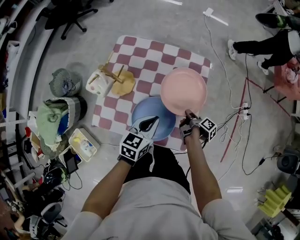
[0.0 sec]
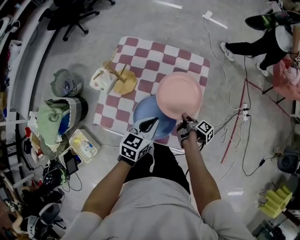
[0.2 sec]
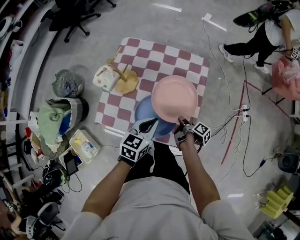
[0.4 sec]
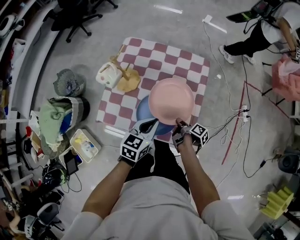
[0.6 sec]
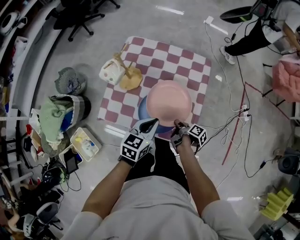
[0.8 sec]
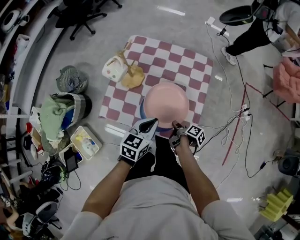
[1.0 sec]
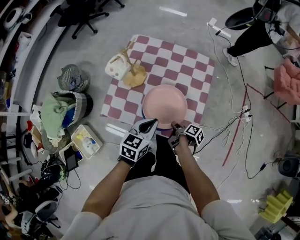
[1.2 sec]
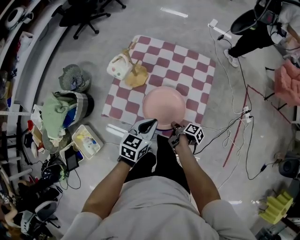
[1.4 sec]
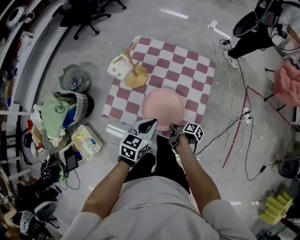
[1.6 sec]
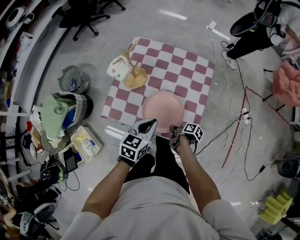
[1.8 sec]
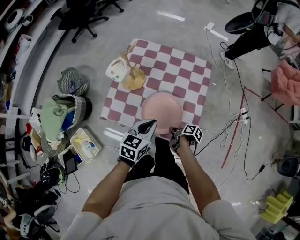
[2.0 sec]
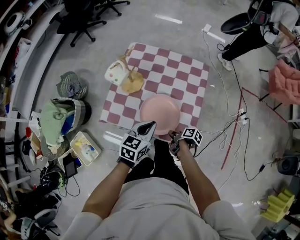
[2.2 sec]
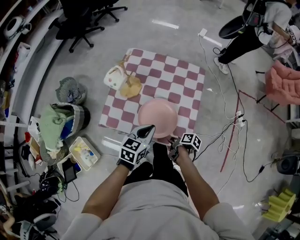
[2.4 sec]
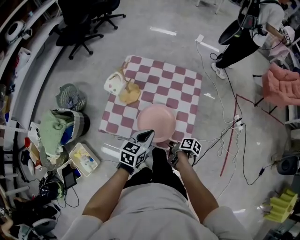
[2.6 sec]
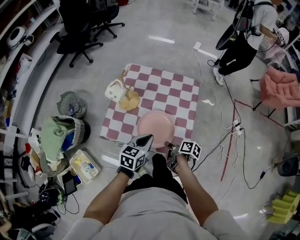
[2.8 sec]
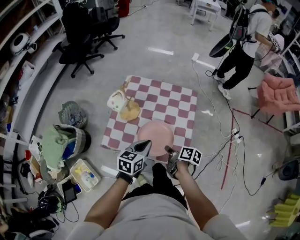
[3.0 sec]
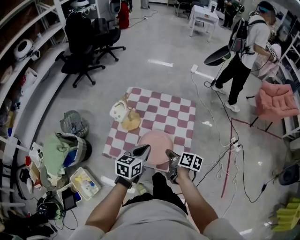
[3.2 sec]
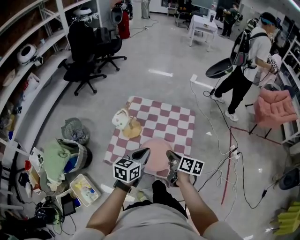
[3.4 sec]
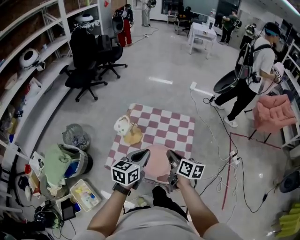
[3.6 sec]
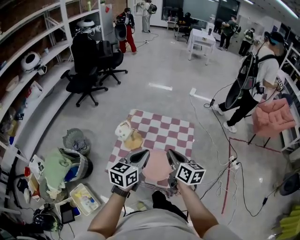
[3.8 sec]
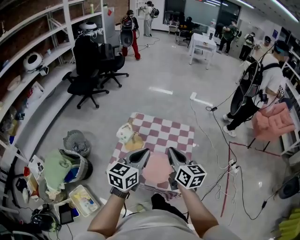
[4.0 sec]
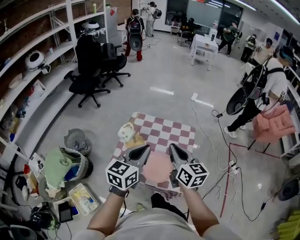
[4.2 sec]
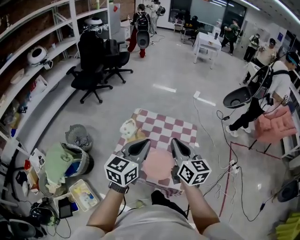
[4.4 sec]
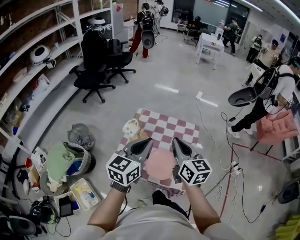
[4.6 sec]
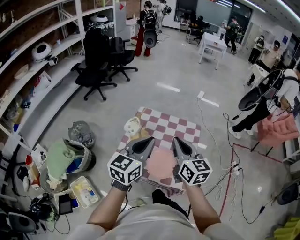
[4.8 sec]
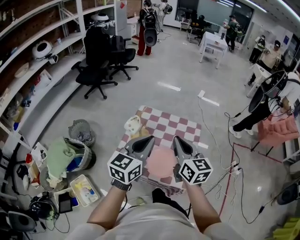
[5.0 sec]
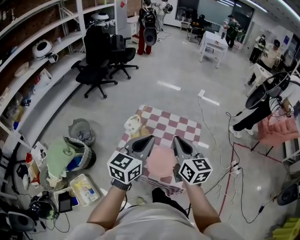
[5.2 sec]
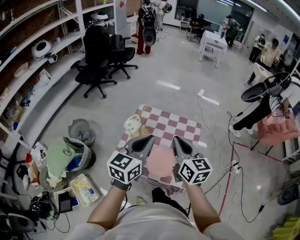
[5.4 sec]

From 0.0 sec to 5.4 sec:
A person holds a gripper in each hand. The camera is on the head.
From 0.0 sec to 1.4 sec: The left gripper shifts by approximately 10 cm.
From 2.8 sec to 4.0 sec: The left gripper is displaced upward by approximately 25 cm, and swivels some 20 degrees.
From 4.0 sec to 5.4 sec: The left gripper moves upward, roughly 5 cm.

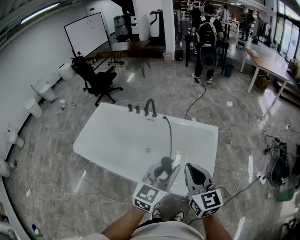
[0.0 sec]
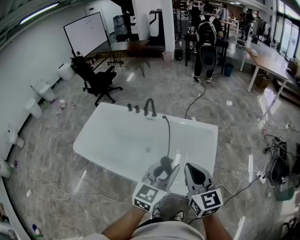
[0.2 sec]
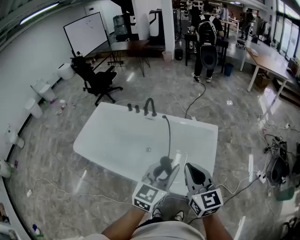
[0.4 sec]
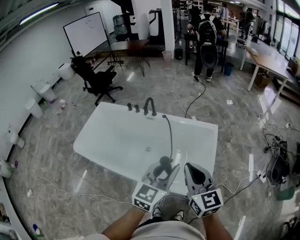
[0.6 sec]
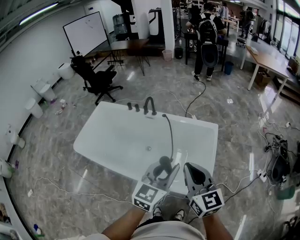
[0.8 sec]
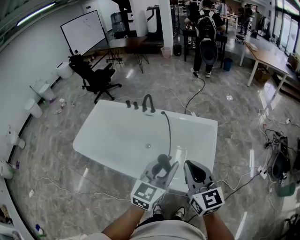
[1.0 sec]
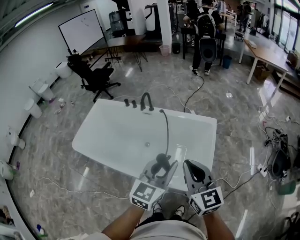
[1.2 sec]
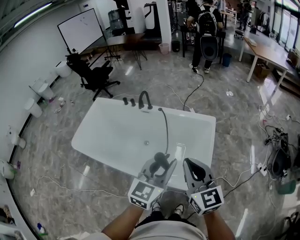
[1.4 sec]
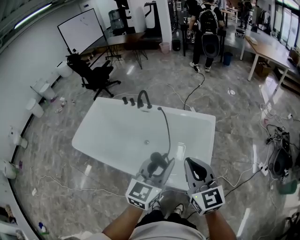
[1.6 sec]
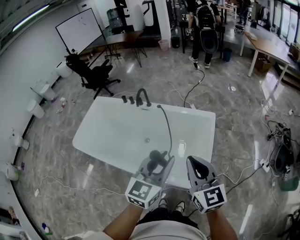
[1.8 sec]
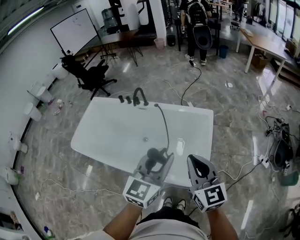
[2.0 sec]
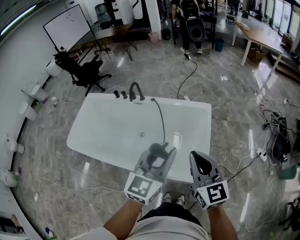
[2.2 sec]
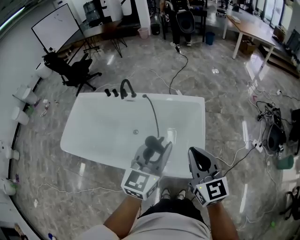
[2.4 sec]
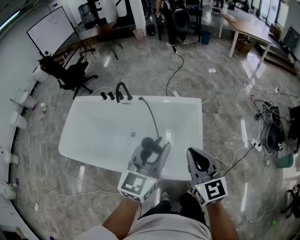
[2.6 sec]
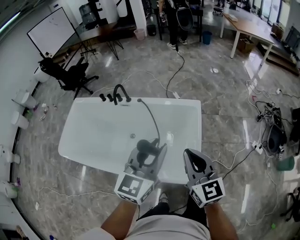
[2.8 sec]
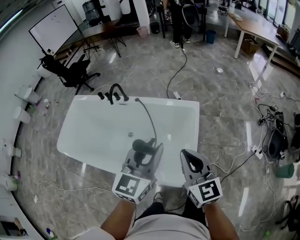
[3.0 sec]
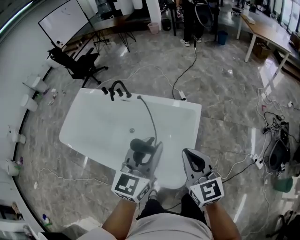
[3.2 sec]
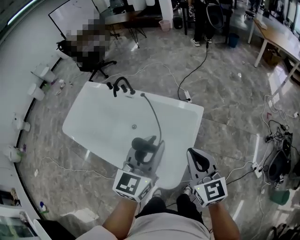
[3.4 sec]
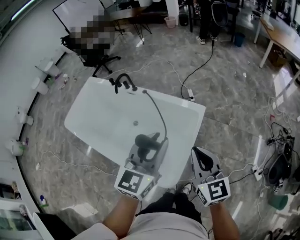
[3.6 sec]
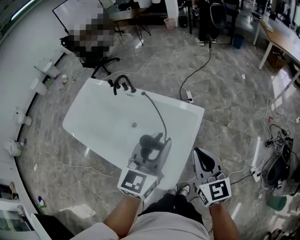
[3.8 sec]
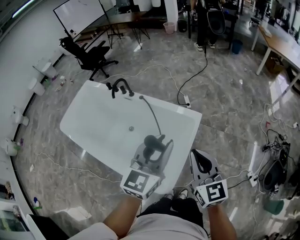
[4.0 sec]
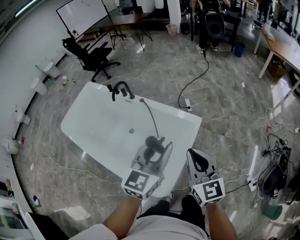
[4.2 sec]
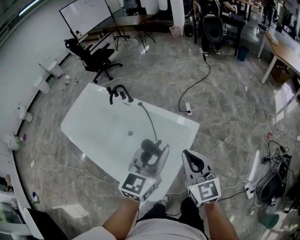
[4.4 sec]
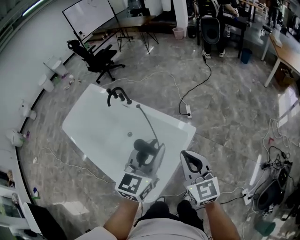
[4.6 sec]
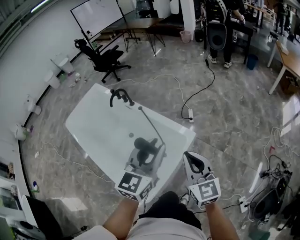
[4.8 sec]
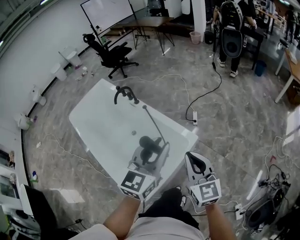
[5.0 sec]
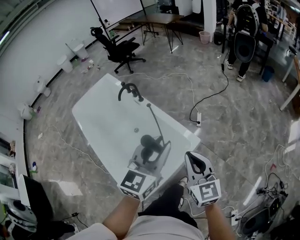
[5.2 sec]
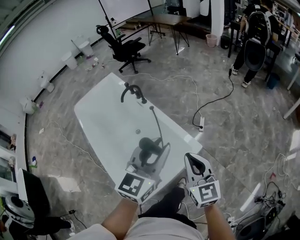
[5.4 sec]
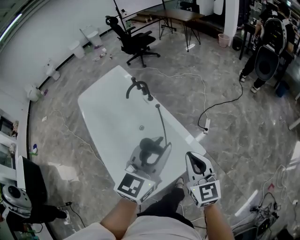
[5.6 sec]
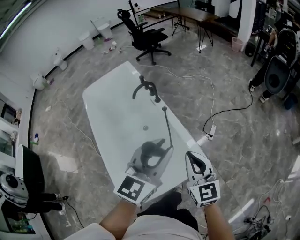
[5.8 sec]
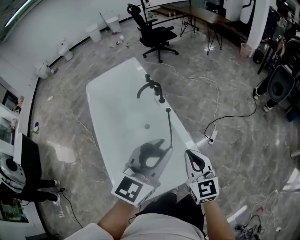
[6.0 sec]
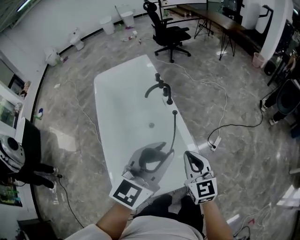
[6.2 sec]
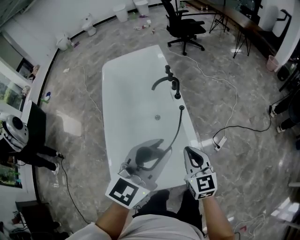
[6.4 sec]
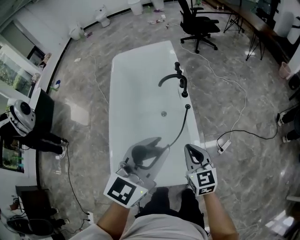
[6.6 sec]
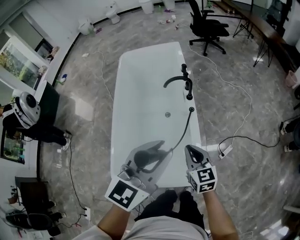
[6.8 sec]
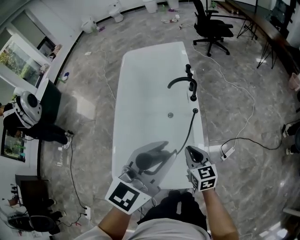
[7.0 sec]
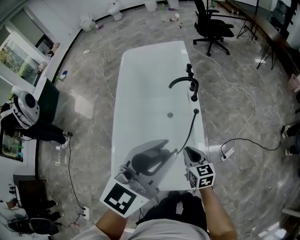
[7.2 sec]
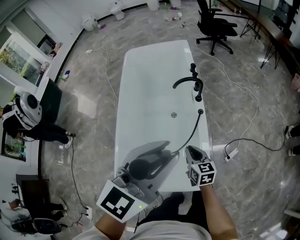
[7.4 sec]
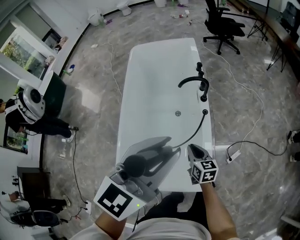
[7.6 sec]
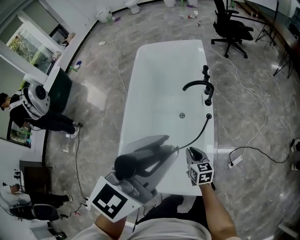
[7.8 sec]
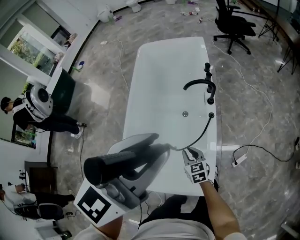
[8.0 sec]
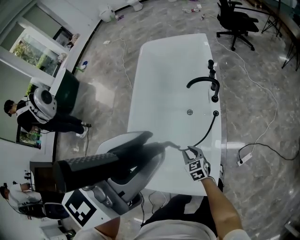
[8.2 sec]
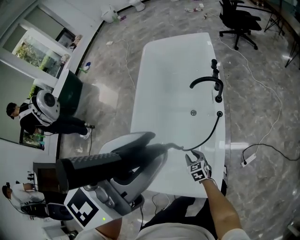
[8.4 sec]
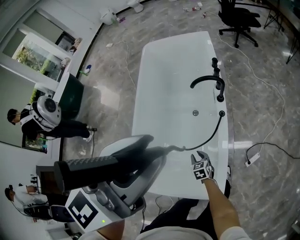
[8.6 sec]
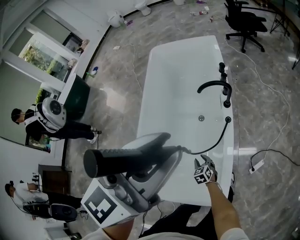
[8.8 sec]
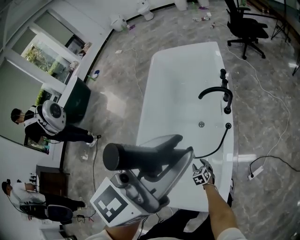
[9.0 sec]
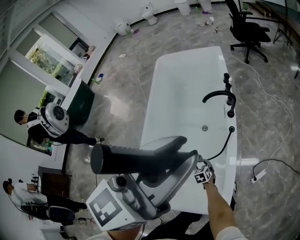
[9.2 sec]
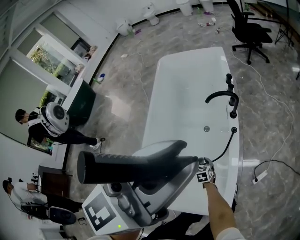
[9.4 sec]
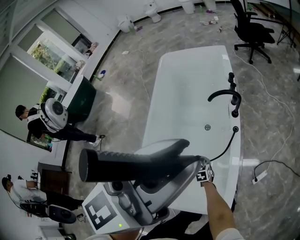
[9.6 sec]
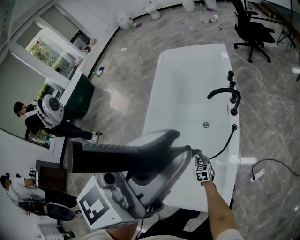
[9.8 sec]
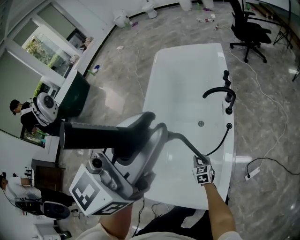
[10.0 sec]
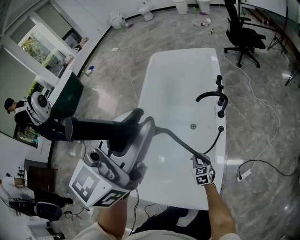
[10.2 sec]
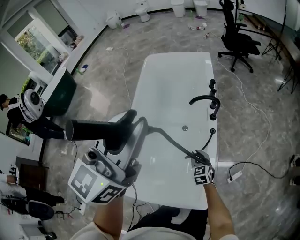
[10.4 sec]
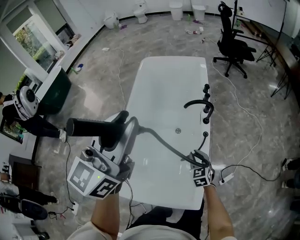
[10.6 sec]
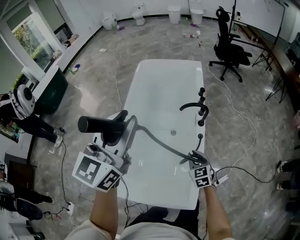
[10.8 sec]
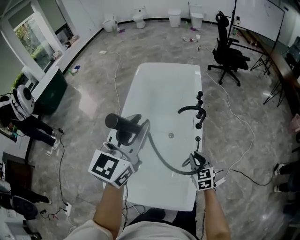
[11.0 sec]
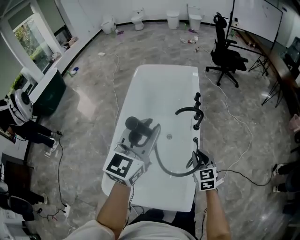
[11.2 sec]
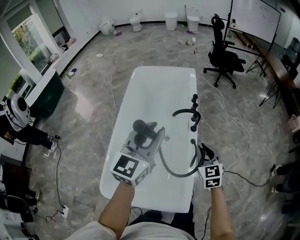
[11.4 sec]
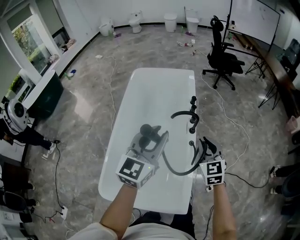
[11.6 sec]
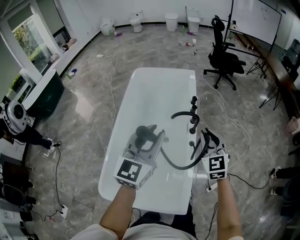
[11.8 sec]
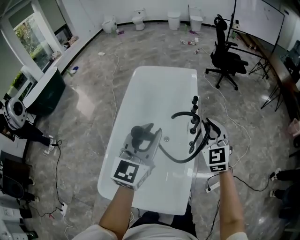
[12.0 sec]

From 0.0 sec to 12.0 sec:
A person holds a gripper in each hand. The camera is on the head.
From 0.0 sec to 1.6 sec: The right gripper travels to the right by roughly 5 cm.
From 1.6 sec to 3.0 sec: The left gripper goes some 10 cm forward and to the right, while the right gripper moves to the right, forward and downward, roughly 15 cm.
From 3.0 sec to 4.4 sec: The two grippers go approximately 20 cm to the right and forward.
From 4.4 sec to 6.0 sec: The left gripper changes place by some 20 cm, and changes its angle by some 30 degrees; the right gripper moves approximately 25 cm, and swivels some 30 degrees.
From 6.0 sec to 7.6 sec: The right gripper travels downward by about 20 cm, and swivels some 40 degrees; the left gripper ends up some 10 cm from where it was, and swivels approximately 20 degrees.
From 7.6 sec to 9.0 sec: The left gripper travels forward by roughly 5 cm. Meanwhile the right gripper shifts about 25 cm downward, rotates approximately 40 degrees, and opens up.
From 9.0 sec to 10.4 sec: The right gripper is displaced upward and to the right by approximately 20 cm, and closes. Meanwhile the left gripper goes approximately 10 cm to the left.
From 10.4 sec to 12.0 sec: The right gripper travels upward by approximately 35 cm, and changes its angle by some 30 degrees. The left gripper shifts about 10 cm downward and forward.

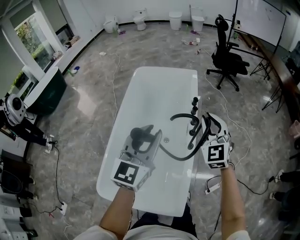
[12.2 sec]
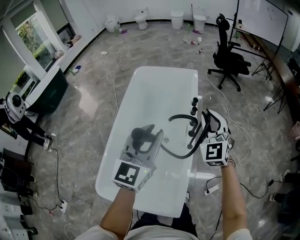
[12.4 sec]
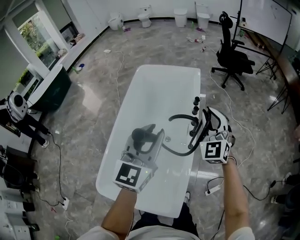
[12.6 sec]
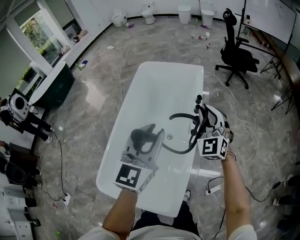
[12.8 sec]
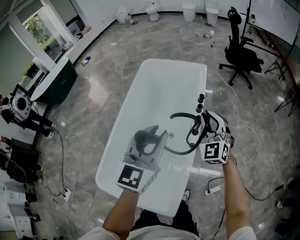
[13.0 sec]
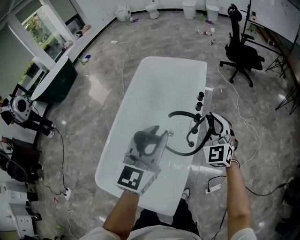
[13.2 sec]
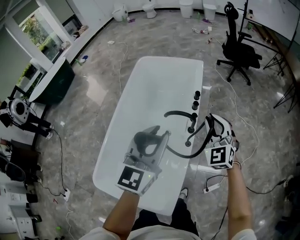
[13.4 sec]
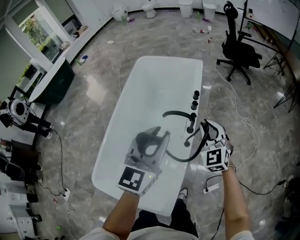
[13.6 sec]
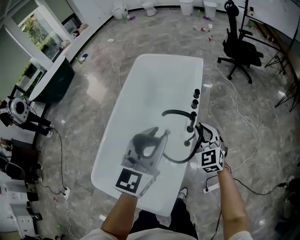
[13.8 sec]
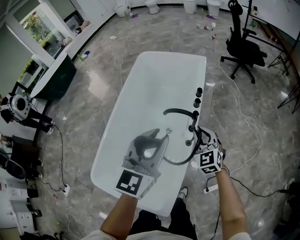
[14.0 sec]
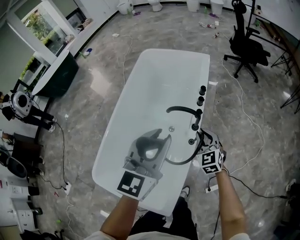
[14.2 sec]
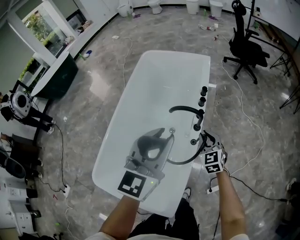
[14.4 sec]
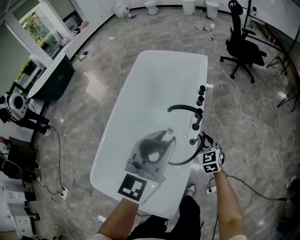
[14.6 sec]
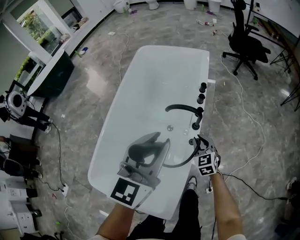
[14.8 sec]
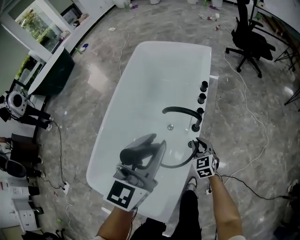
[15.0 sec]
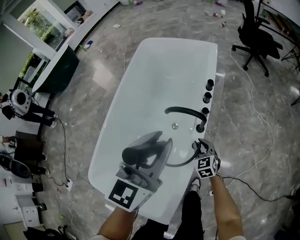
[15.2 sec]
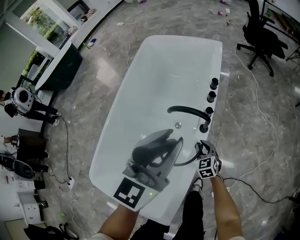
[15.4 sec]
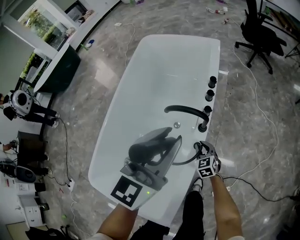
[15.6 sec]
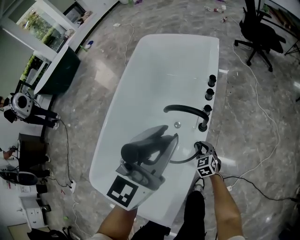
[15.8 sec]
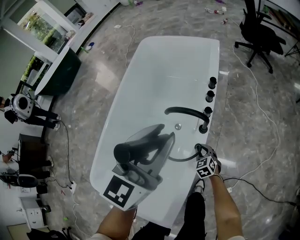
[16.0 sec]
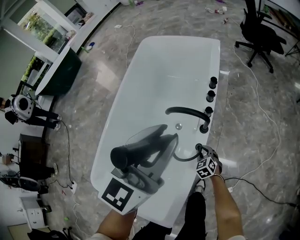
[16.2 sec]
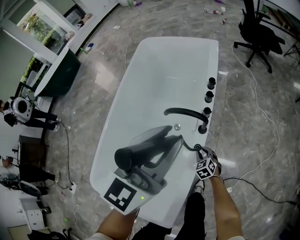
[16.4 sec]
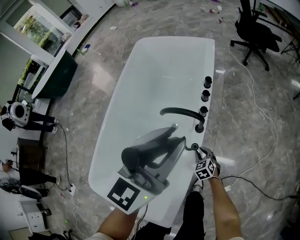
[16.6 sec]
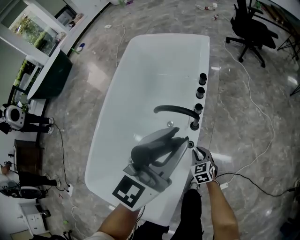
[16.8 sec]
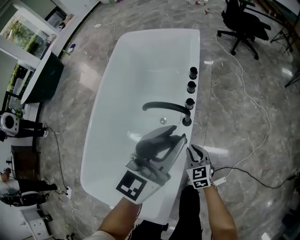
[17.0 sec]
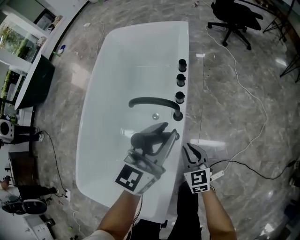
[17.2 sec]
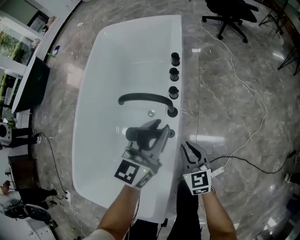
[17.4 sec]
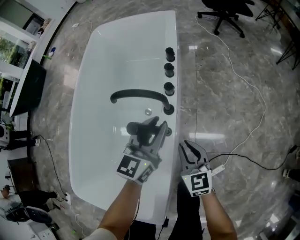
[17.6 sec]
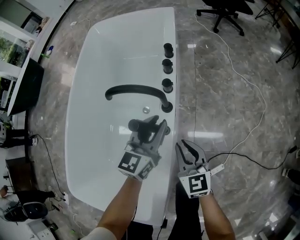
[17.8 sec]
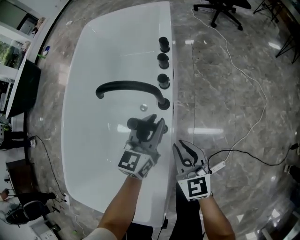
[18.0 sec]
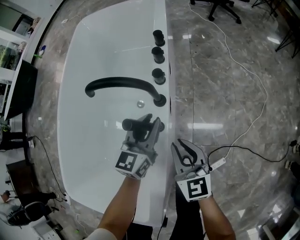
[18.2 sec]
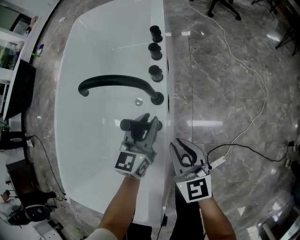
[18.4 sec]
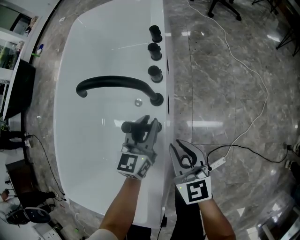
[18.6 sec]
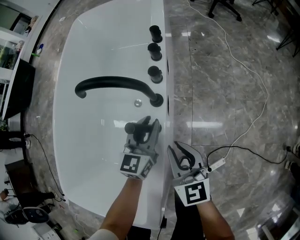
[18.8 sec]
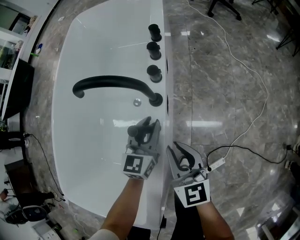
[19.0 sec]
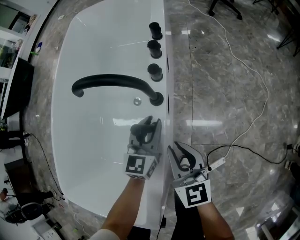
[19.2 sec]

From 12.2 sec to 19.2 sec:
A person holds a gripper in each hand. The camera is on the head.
From 12.2 sec to 13.6 sec: The left gripper moves to the right and forward, approximately 15 cm. Meanwhile the right gripper goes approximately 15 cm downward, to the right and forward.
From 13.6 sec to 15.0 sec: The right gripper is displaced downward by about 25 cm, and rotates some 30 degrees, while the left gripper travels downward by some 5 cm.
From 15.0 sec to 16.4 sec: The right gripper goes roughly 15 cm downward, while the left gripper ends up approximately 5 cm from where it was.
From 16.4 sec to 17.8 sec: The right gripper travels upward and to the right by approximately 15 cm, and tips its fingers upward by approximately 30 degrees. Meanwhile the left gripper travels downward by roughly 30 cm.
From 17.8 sec to 19.2 sec: The left gripper goes about 10 cm downward.
